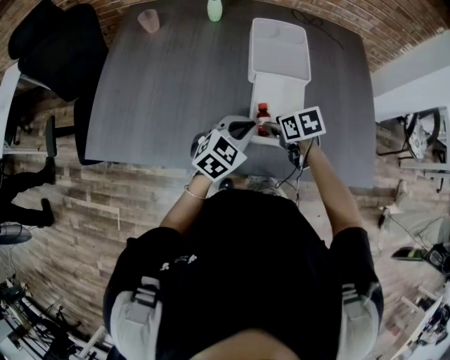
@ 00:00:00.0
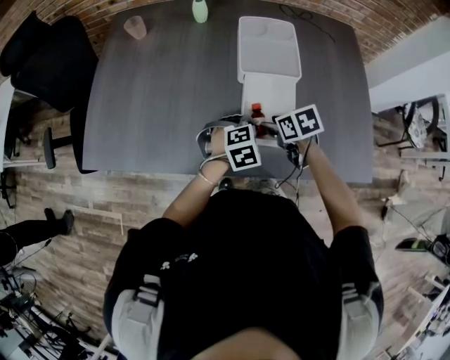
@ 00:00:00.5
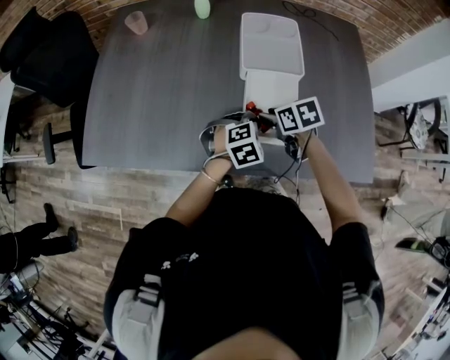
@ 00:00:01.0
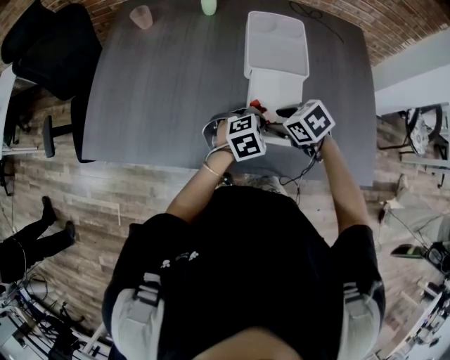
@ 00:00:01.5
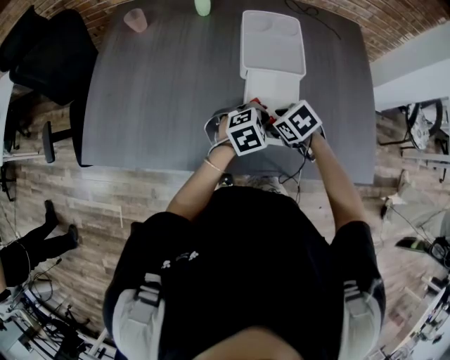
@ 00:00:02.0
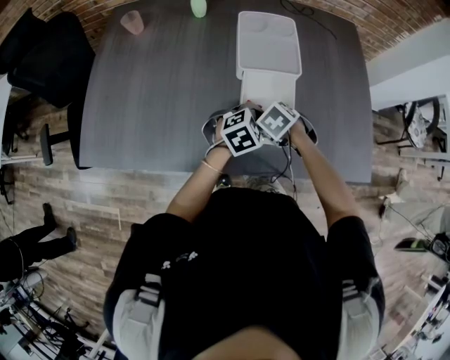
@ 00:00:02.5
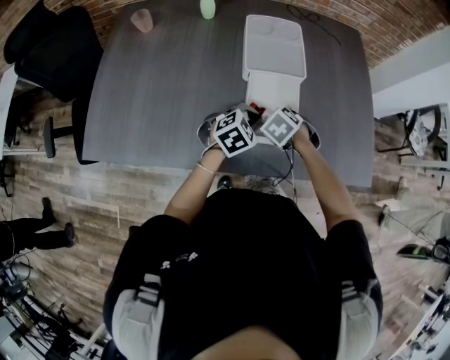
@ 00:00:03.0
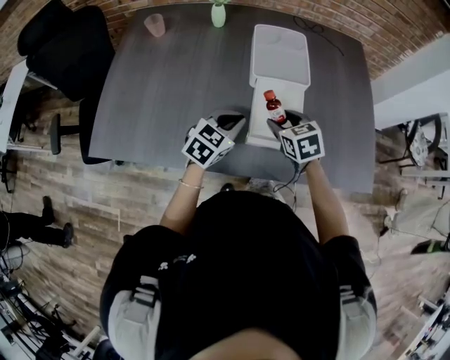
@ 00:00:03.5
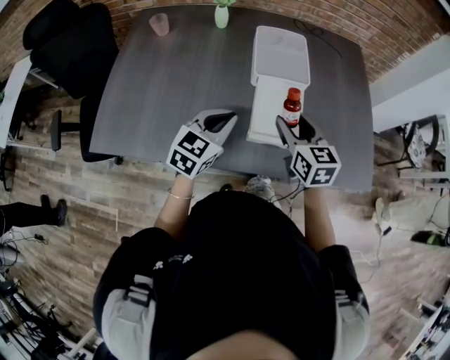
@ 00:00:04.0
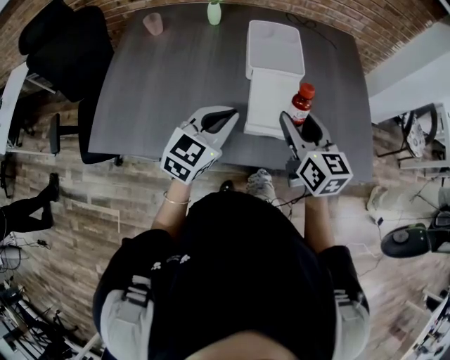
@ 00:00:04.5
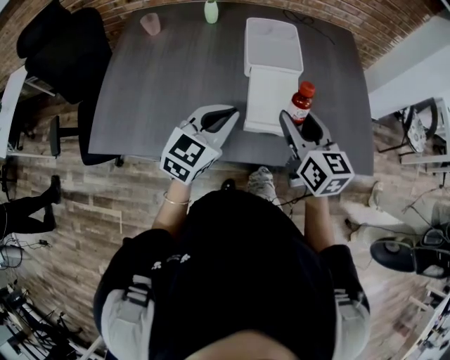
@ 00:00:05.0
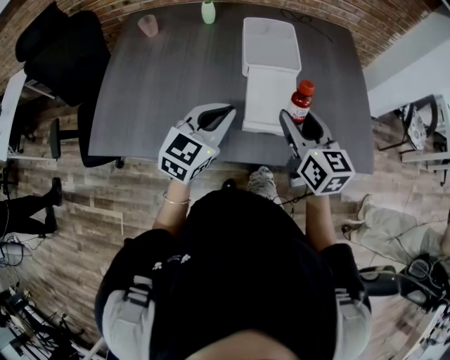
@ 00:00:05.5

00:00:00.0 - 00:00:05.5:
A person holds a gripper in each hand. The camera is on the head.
00:00:00.0 - 00:00:02.0: The right gripper swivels some 20 degrees. Meanwhile the left gripper moves about 10 cm, and changes its angle by approximately 30 degrees.
00:00:02.0 - 00:00:03.5: The left gripper moves about 10 cm, and changes its angle by roughly 30 degrees; the right gripper shifts about 5 cm upward, and turns by roughly 30 degrees.
00:00:03.5 - 00:00:05.5: Both grippers move upward and backward, about 15 cm. The right gripper tips its fingers upward by about 30 degrees.

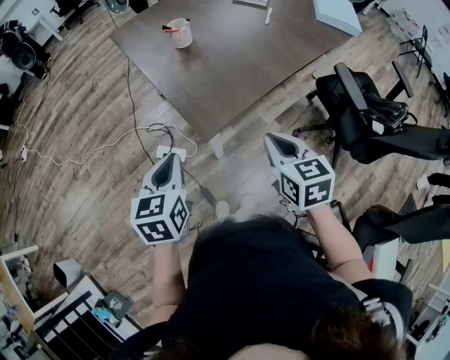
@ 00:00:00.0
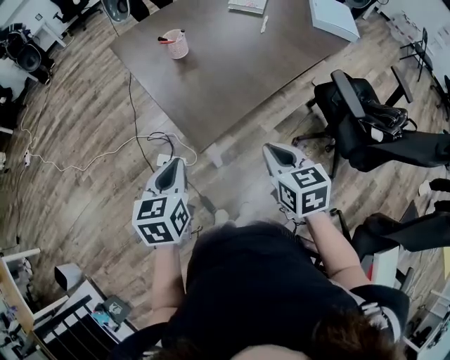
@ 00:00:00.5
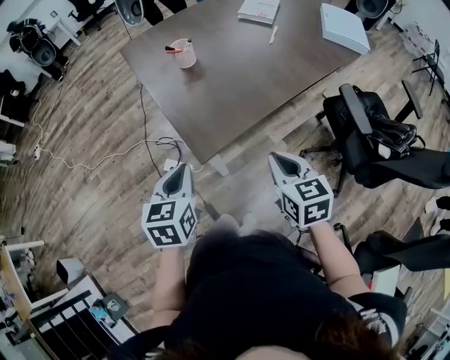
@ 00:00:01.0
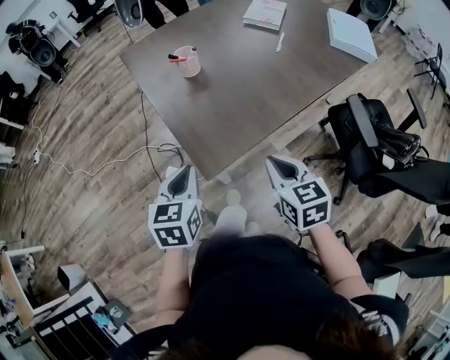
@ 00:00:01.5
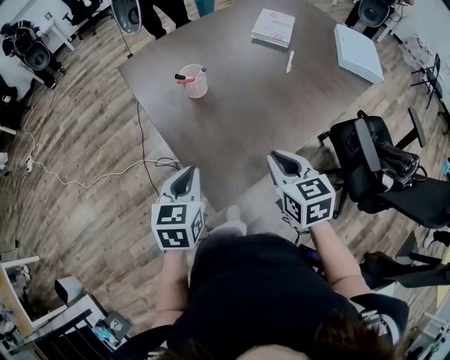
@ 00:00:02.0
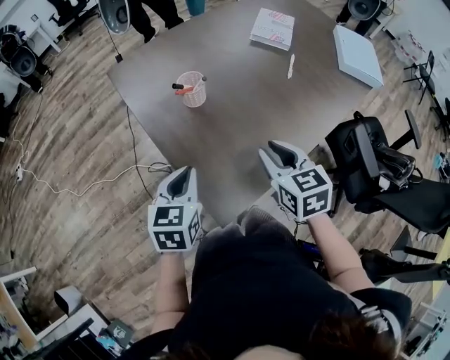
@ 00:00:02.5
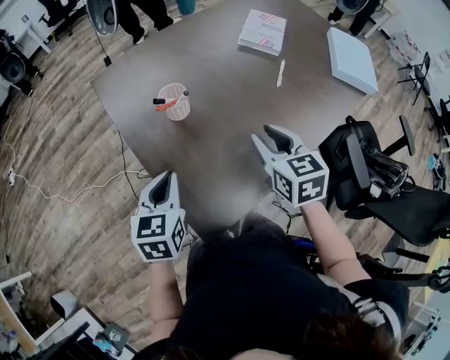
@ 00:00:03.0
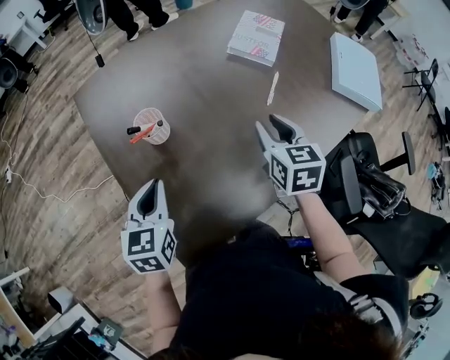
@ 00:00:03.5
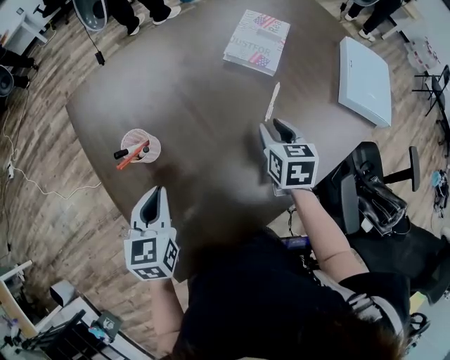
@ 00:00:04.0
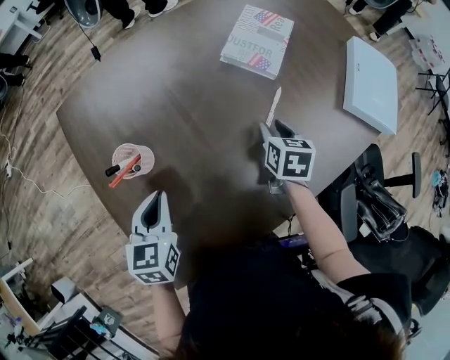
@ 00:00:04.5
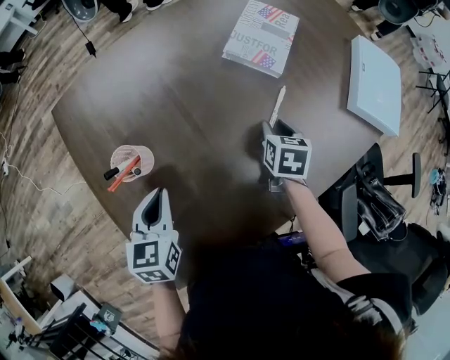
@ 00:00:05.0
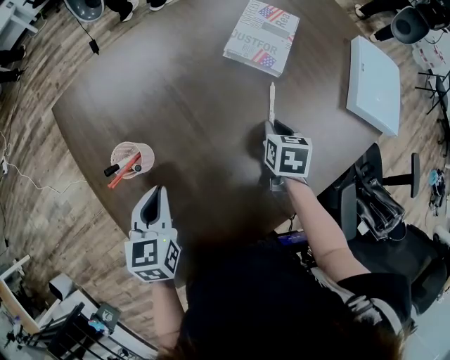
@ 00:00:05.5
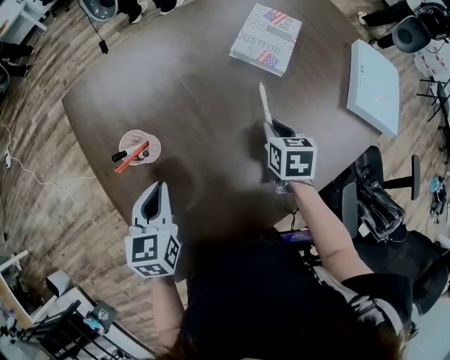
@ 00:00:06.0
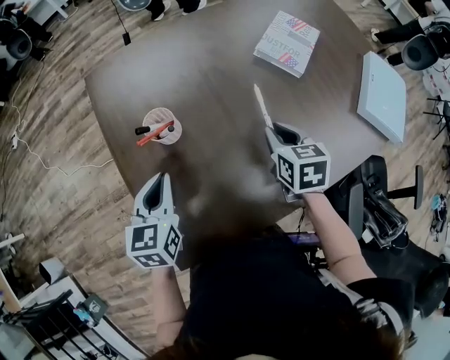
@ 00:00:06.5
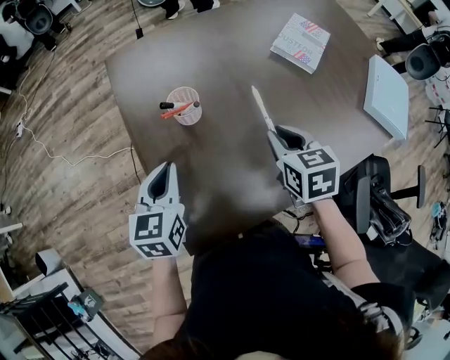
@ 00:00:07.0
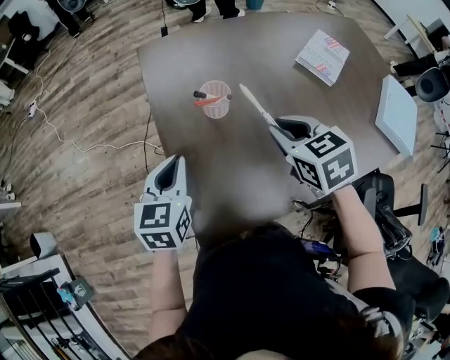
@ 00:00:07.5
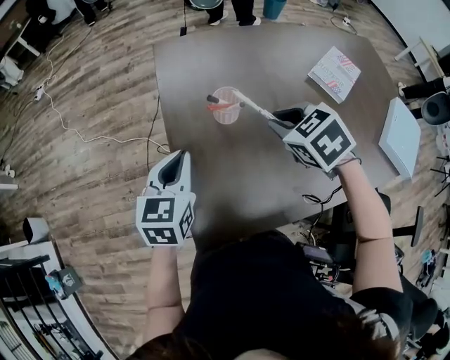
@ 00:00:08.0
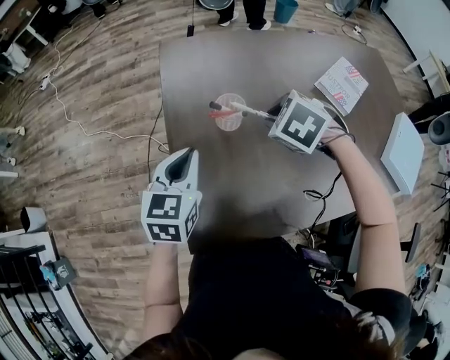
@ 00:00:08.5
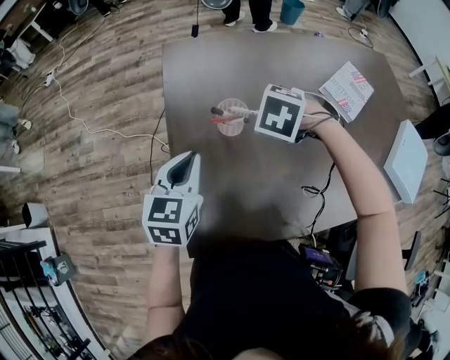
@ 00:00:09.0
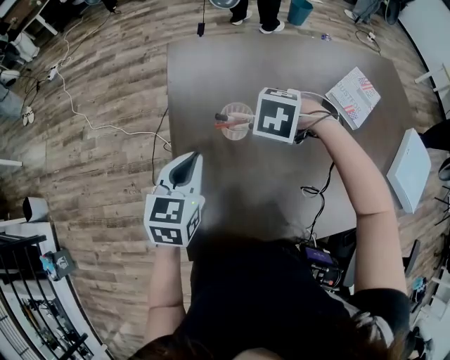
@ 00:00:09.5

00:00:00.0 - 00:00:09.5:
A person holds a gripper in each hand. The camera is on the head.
00:00:00.0 - 00:00:02.0: The grippers both shift forward by some 20 cm.
00:00:02.0 - 00:00:04.0: The right gripper is displaced forward and to the right by approximately 40 cm, and opens; the left gripper moves forward, about 25 cm.
00:00:04.0 - 00:00:05.5: The left gripper ends up some 5 cm from where it was, while the right gripper heads downward, covering about 10 cm.
00:00:05.5 - 00:00:07.5: The right gripper ends up about 35 cm from where it was, and swivels approximately 50 degrees. Meanwhile the left gripper ends up some 20 cm from where it was.
00:00:07.5 - 00:00:09.5: The right gripper changes place by roughly 15 cm, and points its fingers some 40 degrees further downward. Meanwhile the left gripper moves roughly 5 cm.

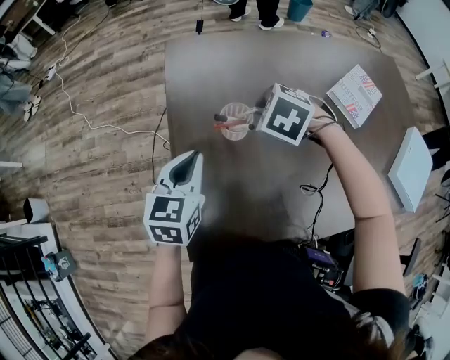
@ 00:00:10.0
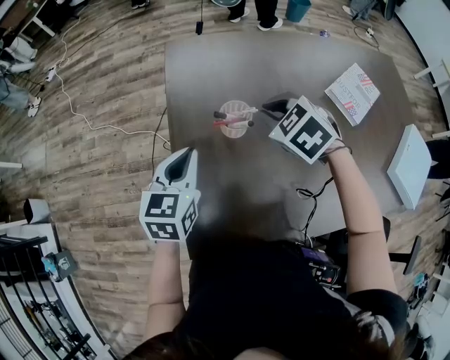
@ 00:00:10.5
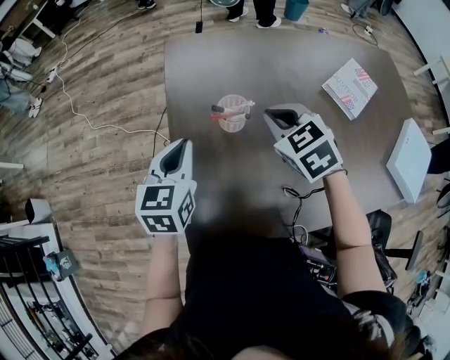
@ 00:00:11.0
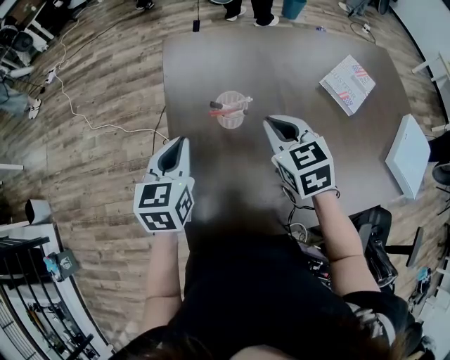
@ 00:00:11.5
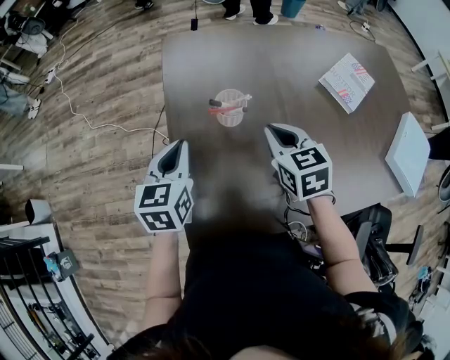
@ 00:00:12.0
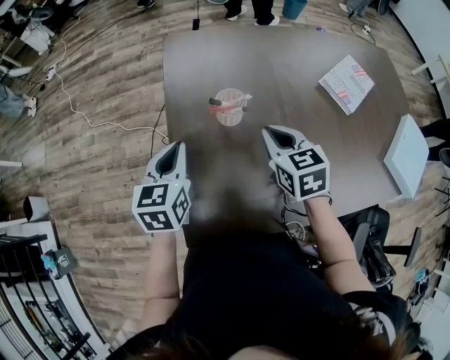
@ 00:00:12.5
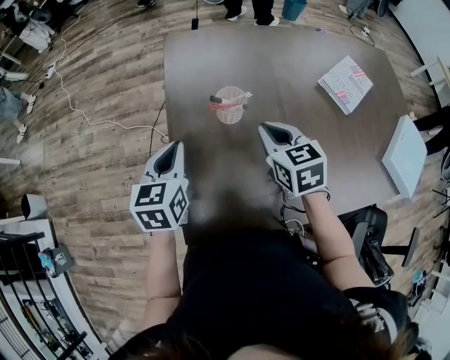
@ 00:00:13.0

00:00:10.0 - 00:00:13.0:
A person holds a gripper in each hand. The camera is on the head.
00:00:10.0 - 00:00:11.5: The right gripper travels backward by about 10 cm, and angles its fingers upward, by approximately 40 degrees.
00:00:11.5 - 00:00:13.0: The grippers stay close to where they were, moving slightly.

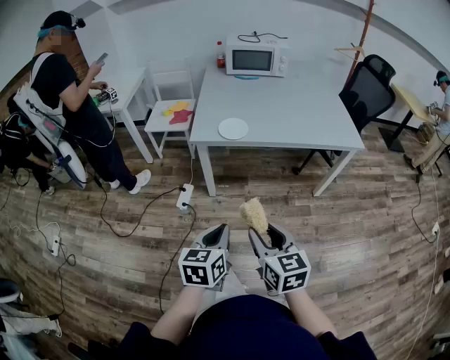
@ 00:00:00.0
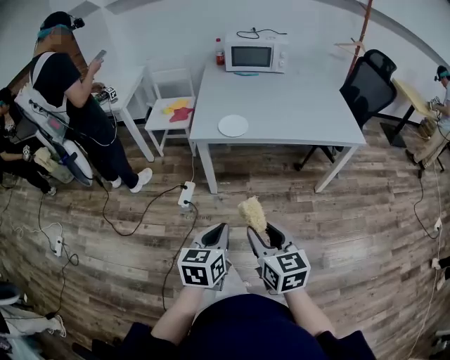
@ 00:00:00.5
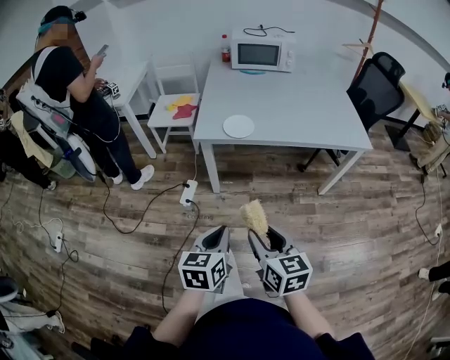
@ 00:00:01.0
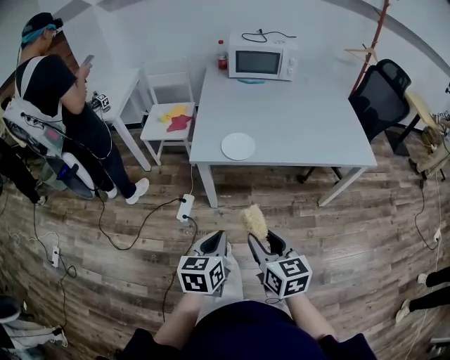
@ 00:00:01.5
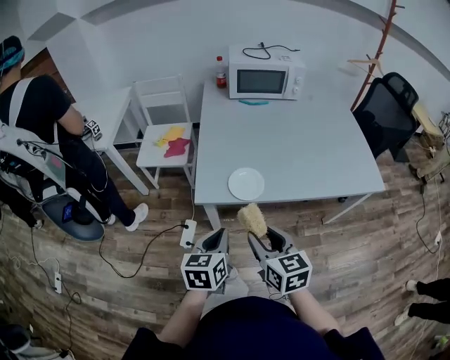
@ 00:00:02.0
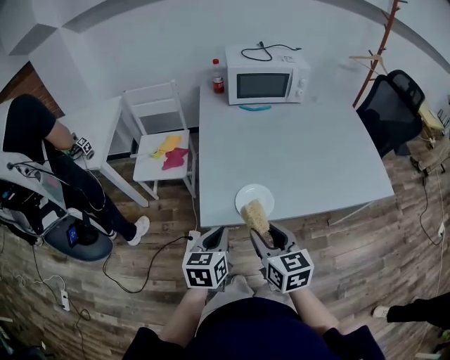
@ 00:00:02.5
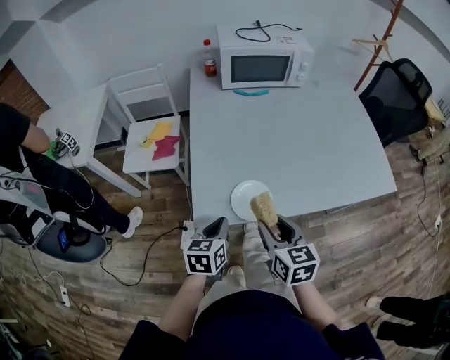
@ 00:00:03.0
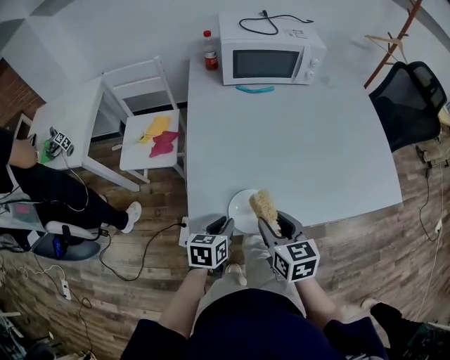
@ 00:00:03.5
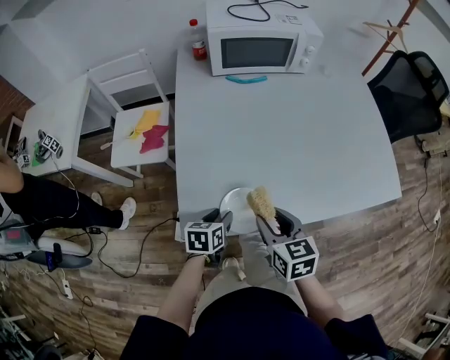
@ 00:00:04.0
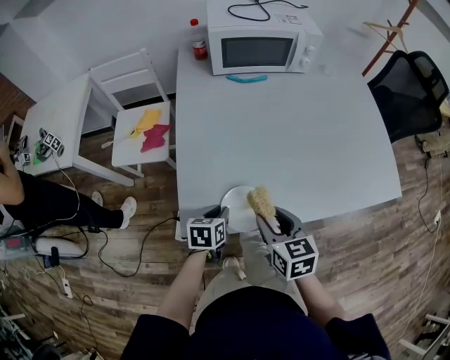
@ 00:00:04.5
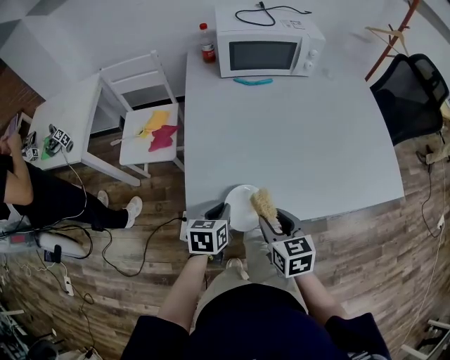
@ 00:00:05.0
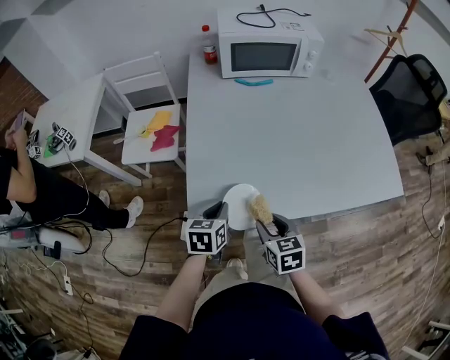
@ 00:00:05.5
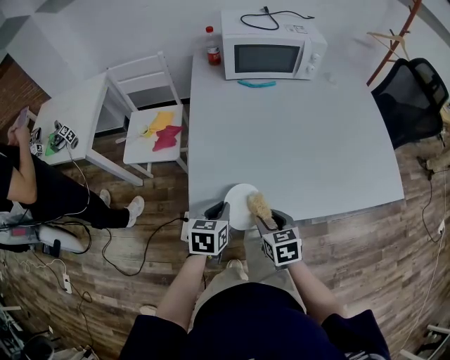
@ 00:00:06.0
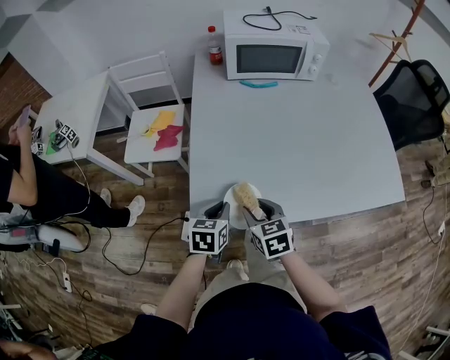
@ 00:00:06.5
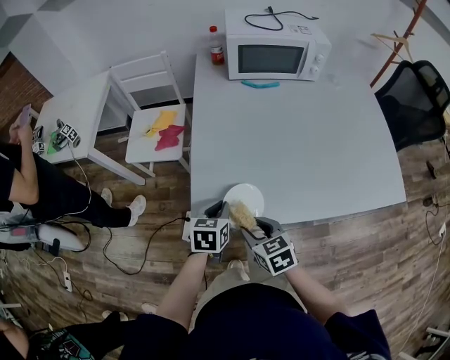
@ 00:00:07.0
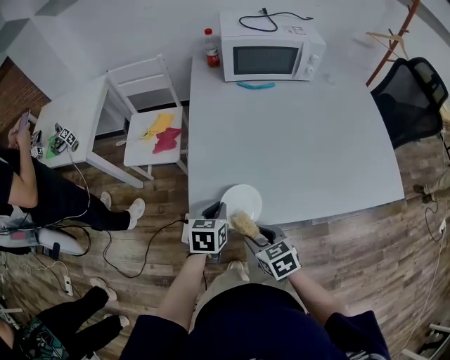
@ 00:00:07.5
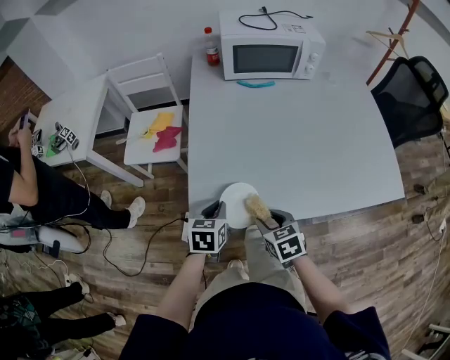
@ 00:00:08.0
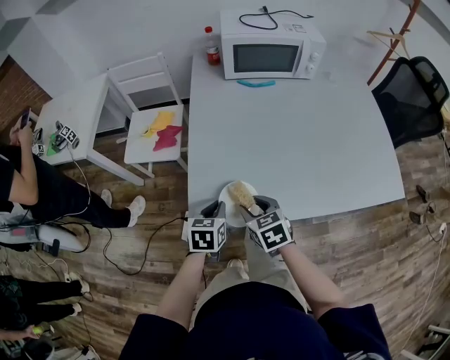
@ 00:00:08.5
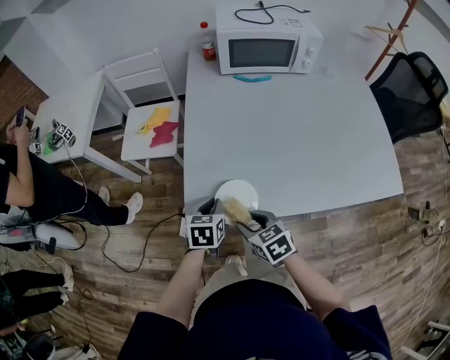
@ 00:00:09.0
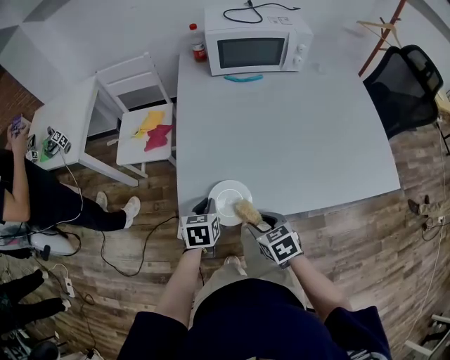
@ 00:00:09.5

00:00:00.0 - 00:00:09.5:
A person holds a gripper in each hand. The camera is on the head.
00:00:00.0 - 00:00:02.0: The two grippers go roughly 30 cm forward.
00:00:02.0 - 00:00:04.0: The left gripper travels forward and downward by roughly 30 cm, changes its angle by roughly 20 degrees, and opens up; the right gripper moves forward, approximately 20 cm.
00:00:04.0 - 00:00:05.5: The right gripper shifts some 5 cm downward, while the left gripper moves upward, approximately 5 cm, and closes its fingers.
00:00:05.5 - 00:00:07.5: The right gripper goes about 5 cm to the left, and travels forward and back again, about 5 cm each way.
00:00:07.5 - 00:00:09.5: The right gripper heads to the right, covering roughly 5 cm, and goes forward and returns, about 10 cm each way.
